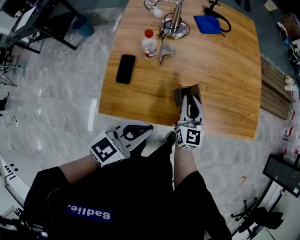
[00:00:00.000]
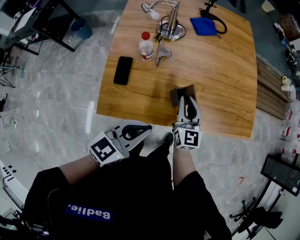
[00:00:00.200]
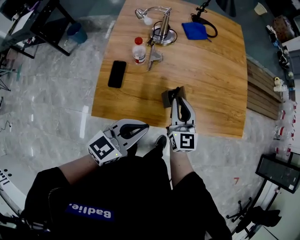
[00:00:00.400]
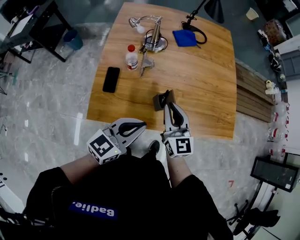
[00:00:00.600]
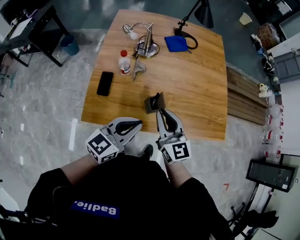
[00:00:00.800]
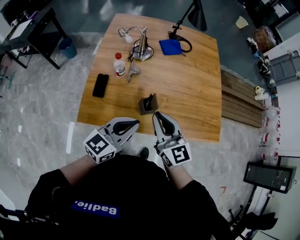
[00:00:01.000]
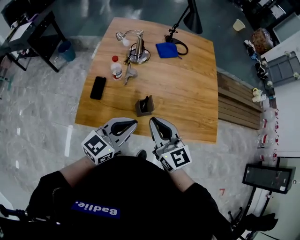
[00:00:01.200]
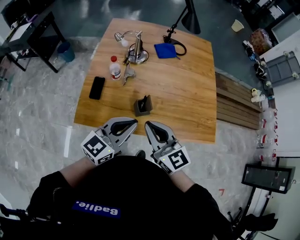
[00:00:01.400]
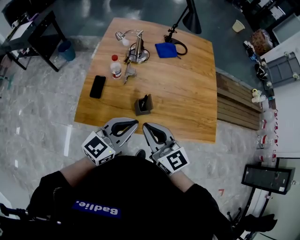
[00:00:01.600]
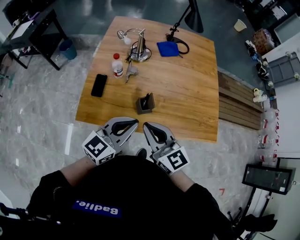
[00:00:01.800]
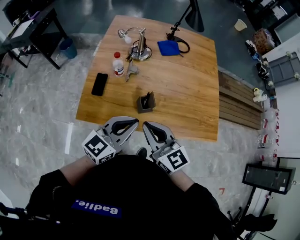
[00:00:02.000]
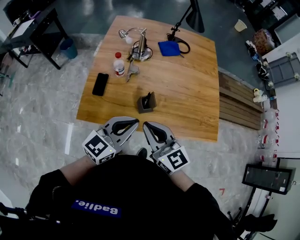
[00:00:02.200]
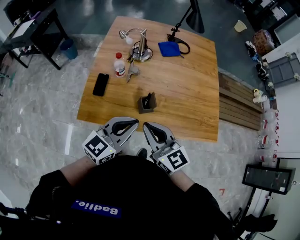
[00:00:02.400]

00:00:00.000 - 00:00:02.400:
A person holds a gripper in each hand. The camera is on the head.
00:00:00.000 - 00:00:01.200: The right gripper is displaced upward and backward by about 20 cm, and rotates approximately 30 degrees; the left gripper moves upward and to the right, about 10 cm.
00:00:01.200 - 00:00:02.400: The right gripper ends up about 5 cm from where it was.

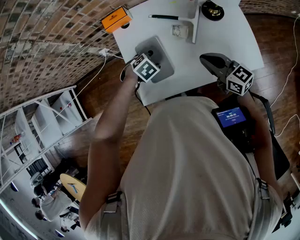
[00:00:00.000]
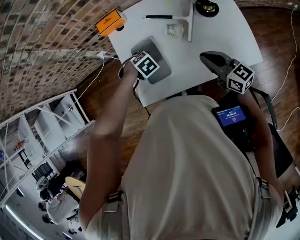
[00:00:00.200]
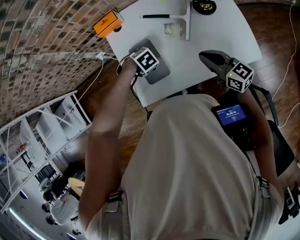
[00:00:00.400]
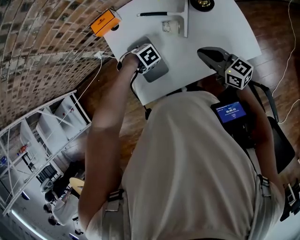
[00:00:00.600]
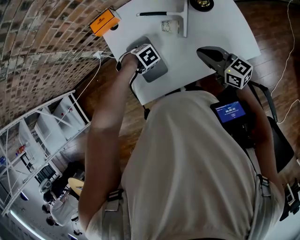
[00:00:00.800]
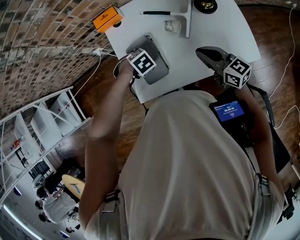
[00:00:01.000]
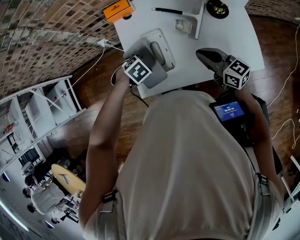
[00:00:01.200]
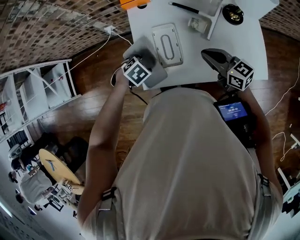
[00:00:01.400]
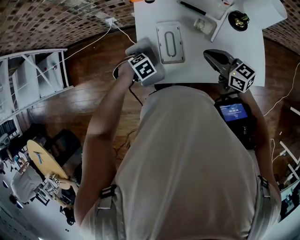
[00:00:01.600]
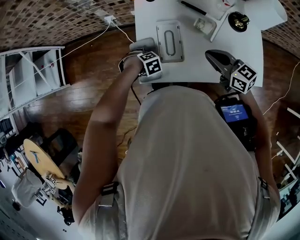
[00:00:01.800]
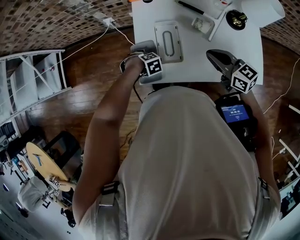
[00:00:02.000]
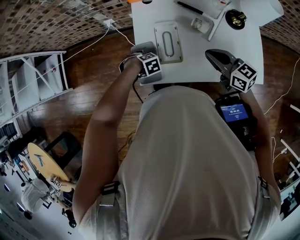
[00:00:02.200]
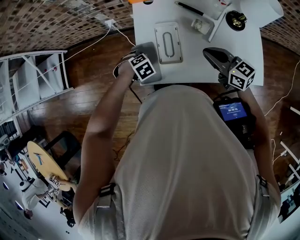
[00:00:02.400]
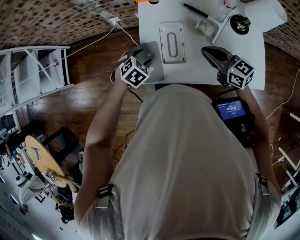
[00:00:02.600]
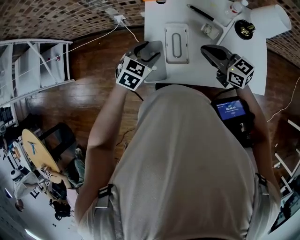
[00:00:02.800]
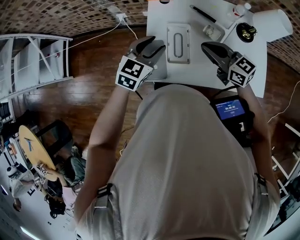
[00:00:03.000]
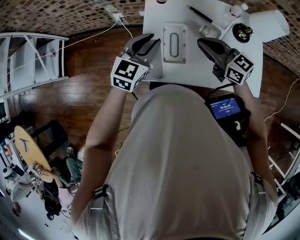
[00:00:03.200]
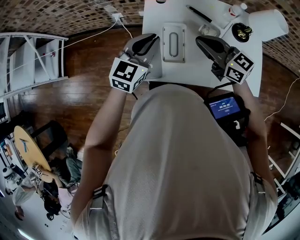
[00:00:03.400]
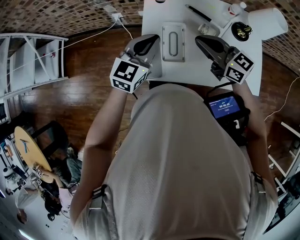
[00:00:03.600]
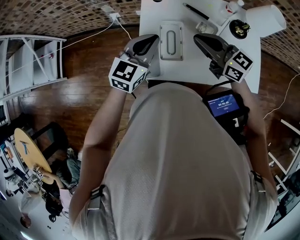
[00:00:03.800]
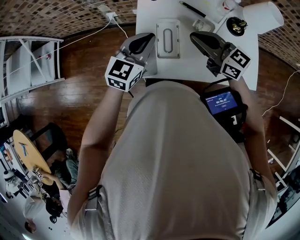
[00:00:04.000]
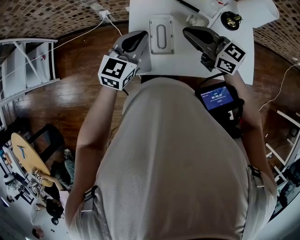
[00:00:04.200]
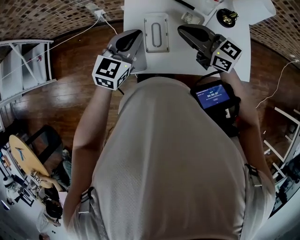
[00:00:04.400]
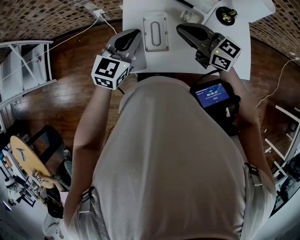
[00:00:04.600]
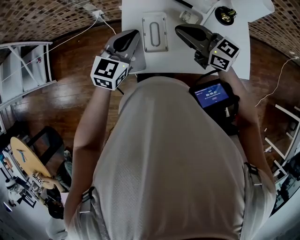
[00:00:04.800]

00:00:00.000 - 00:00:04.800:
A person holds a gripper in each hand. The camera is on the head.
00:00:00.000 - 00:00:01.600: The left gripper moves up and down over some 5 cm, changing direction 2 times. Meanwhile the right gripper ends up some 10 cm from where it was.
00:00:01.600 - 00:00:03.200: The left gripper heads upward, covering some 25 cm, points its fingers roughly 70 degrees further upward, and closes its fingers; the right gripper moves about 10 cm.
00:00:03.200 - 00:00:04.800: The grippers make only small movements.

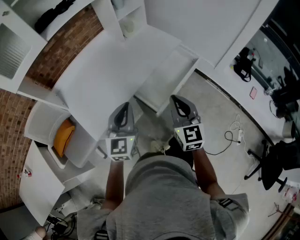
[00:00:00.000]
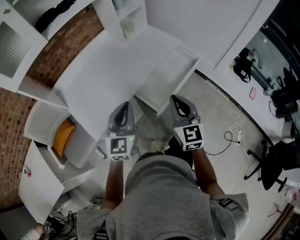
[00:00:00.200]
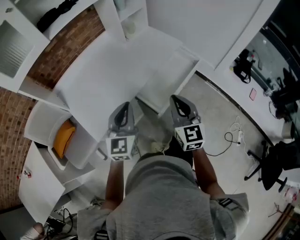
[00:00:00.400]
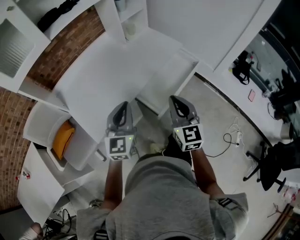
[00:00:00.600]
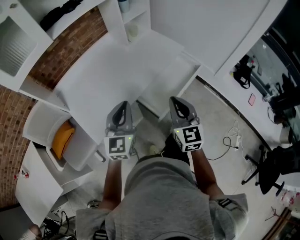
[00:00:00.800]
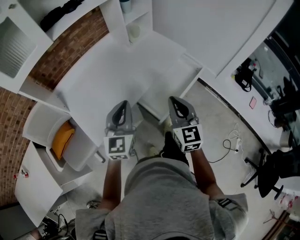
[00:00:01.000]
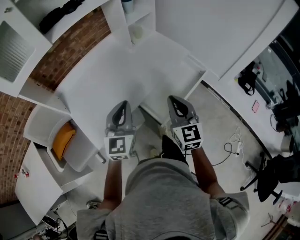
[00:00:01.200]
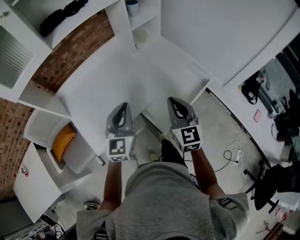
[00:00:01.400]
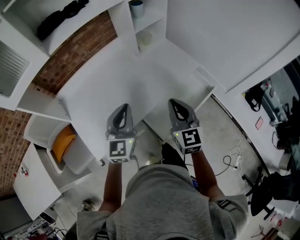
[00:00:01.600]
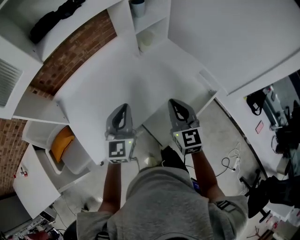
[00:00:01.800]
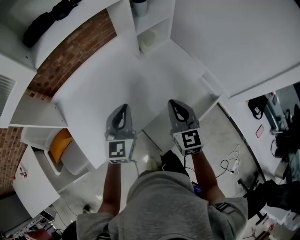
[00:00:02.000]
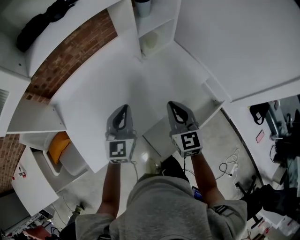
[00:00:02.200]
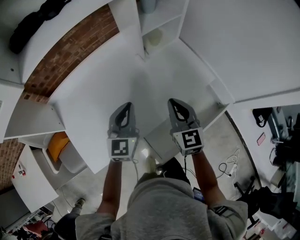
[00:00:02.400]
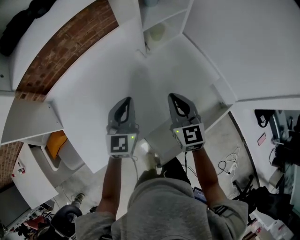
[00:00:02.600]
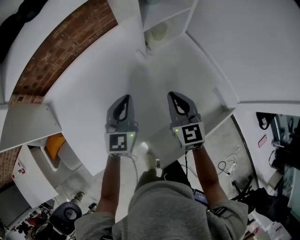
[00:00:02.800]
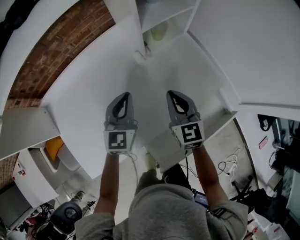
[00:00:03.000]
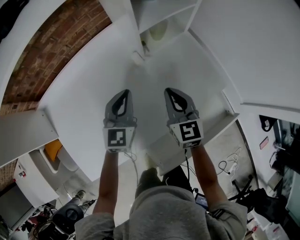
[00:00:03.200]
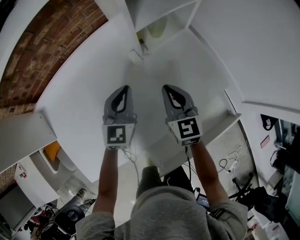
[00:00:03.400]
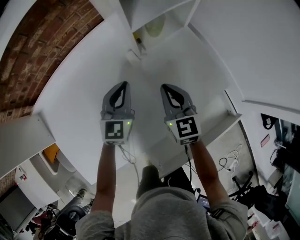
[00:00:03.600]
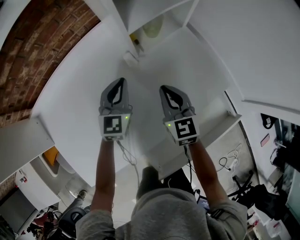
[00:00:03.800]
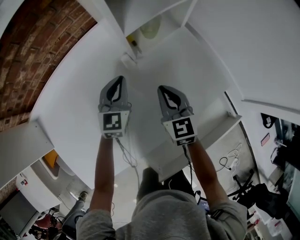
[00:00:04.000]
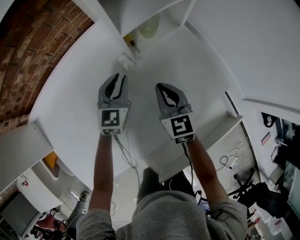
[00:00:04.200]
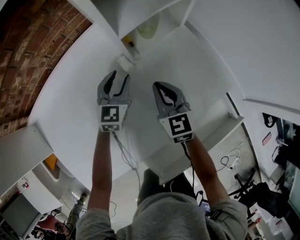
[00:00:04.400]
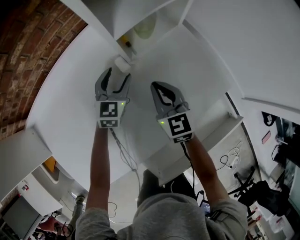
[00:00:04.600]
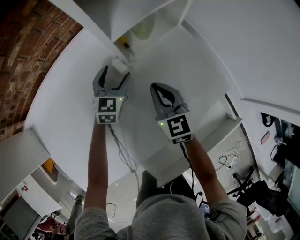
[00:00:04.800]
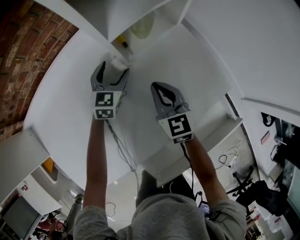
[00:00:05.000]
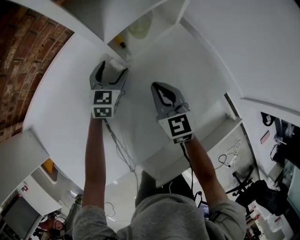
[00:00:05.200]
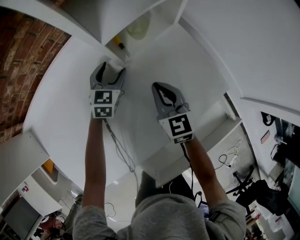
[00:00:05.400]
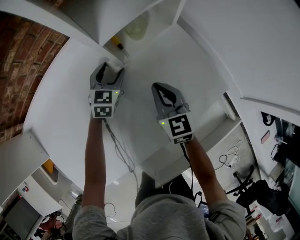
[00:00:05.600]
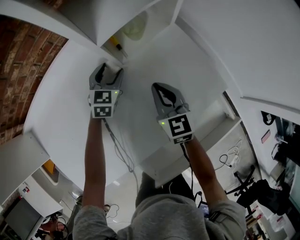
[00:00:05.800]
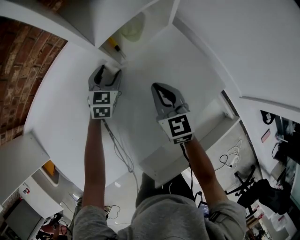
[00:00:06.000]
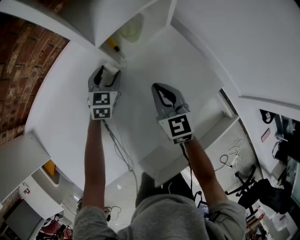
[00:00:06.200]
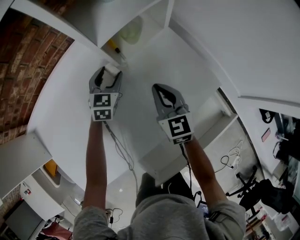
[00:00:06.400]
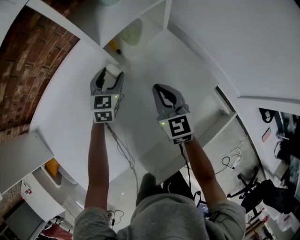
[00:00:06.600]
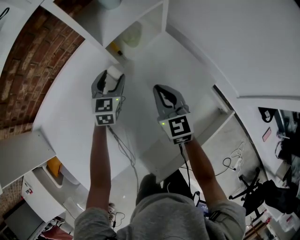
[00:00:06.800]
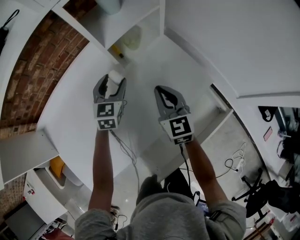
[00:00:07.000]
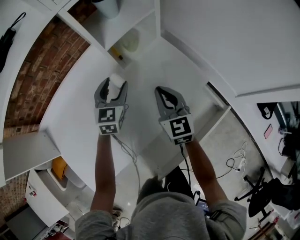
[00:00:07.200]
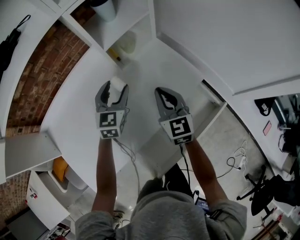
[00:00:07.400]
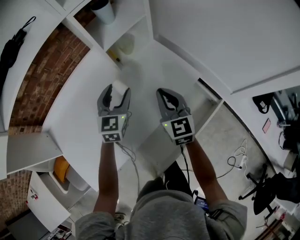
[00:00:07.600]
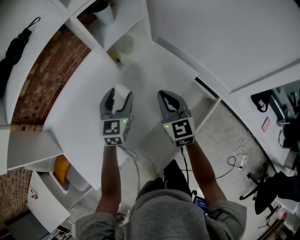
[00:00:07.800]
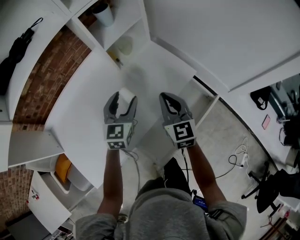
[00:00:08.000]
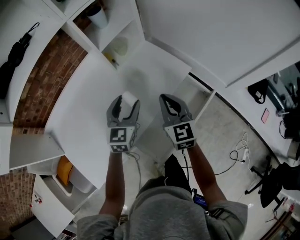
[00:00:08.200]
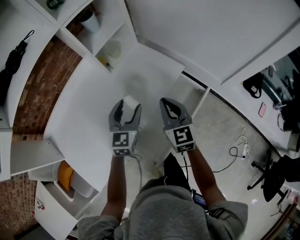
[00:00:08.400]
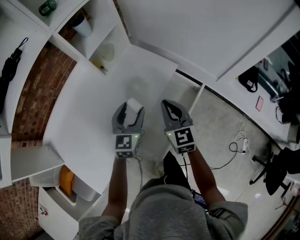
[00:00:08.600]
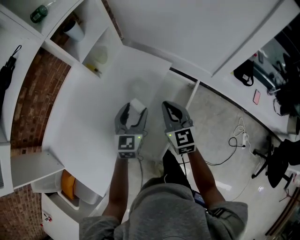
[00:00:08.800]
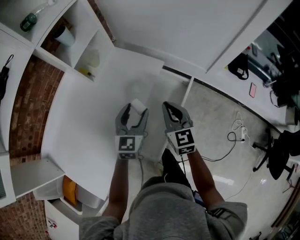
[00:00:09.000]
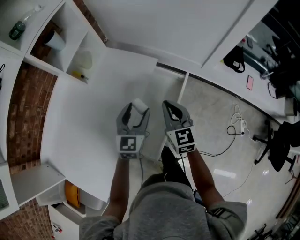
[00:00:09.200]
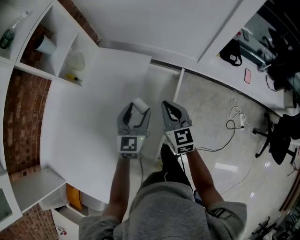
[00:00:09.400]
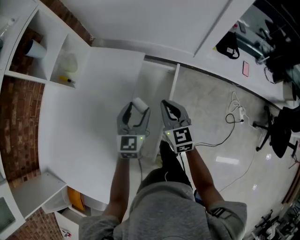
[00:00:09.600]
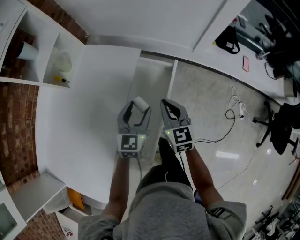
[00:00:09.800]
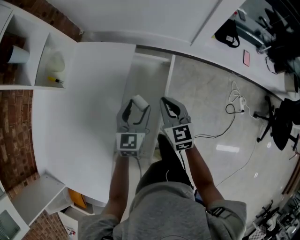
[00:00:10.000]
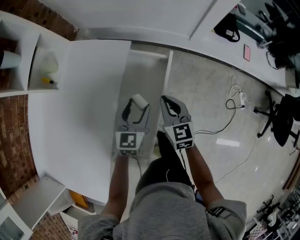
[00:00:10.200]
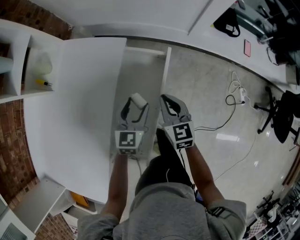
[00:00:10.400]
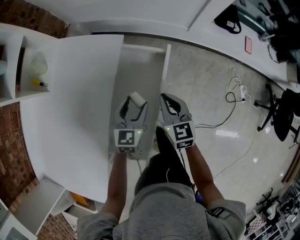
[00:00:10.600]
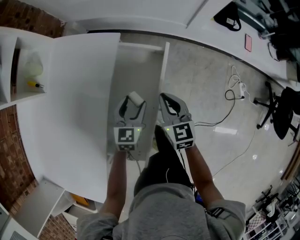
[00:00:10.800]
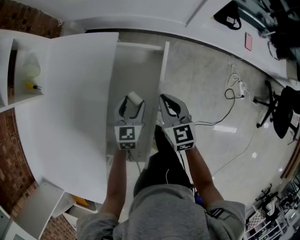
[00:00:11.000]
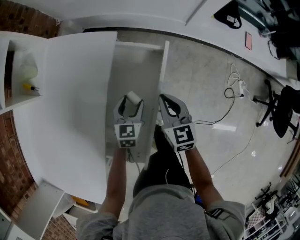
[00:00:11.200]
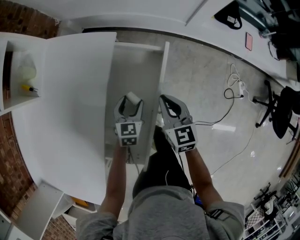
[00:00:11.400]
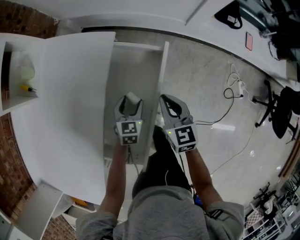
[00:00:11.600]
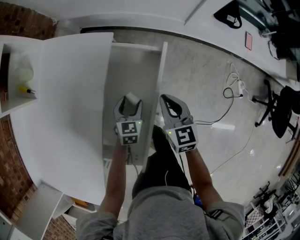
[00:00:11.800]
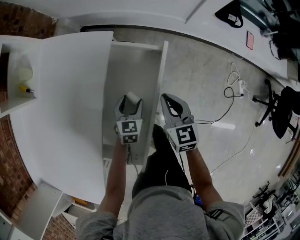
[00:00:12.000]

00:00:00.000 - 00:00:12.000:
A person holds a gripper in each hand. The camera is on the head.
00:00:00.000 - 00:00:01.600: The grippers both shift forward by some 15 cm.
00:00:01.600 - 00:00:03.000: The grippers both shift forward and downward by some 30 cm.
00:00:03.000 - 00:00:04.400: The left gripper goes about 20 cm forward and downward, and opens up; the right gripper moves downward and forward, roughly 15 cm.
00:00:04.400 - 00:00:06.000: The left gripper heads downward and forward, covering approximately 5 cm.
00:00:06.000 - 00:00:07.600: The two grippers go about 20 cm upward and backward.
00:00:07.600 - 00:00:09.000: The left gripper goes approximately 20 cm to the right and backward, and swivels about 20 degrees, while the right gripper heads backward and to the right, covering roughly 20 cm, and swivels about 20 degrees.
00:00:09.000 - 00:00:10.400: The grippers both shift downward and to the right by approximately 20 cm.
00:00:10.400 - 00:00:12.000: The left gripper goes about 15 cm downward. The right gripper travels downward by about 5 cm.

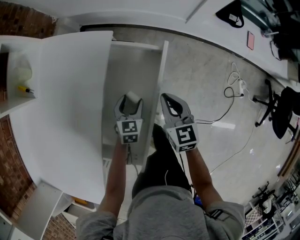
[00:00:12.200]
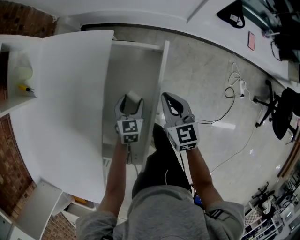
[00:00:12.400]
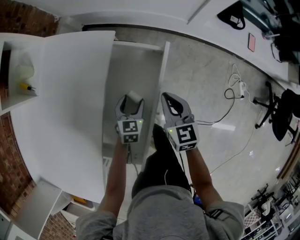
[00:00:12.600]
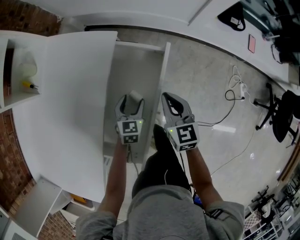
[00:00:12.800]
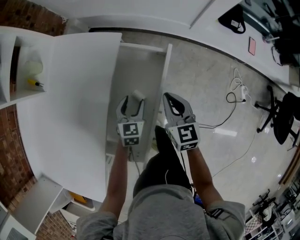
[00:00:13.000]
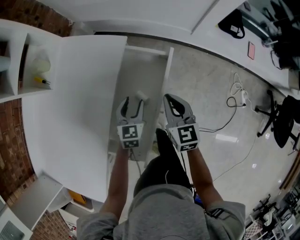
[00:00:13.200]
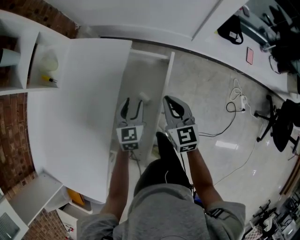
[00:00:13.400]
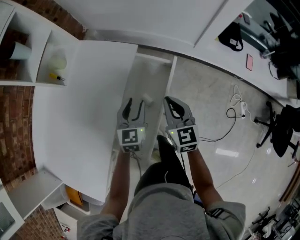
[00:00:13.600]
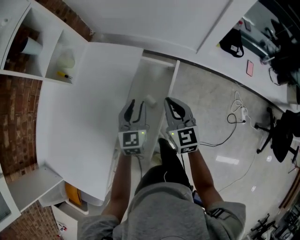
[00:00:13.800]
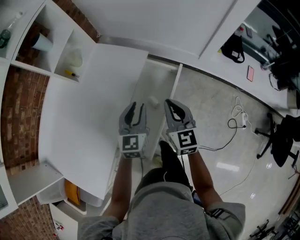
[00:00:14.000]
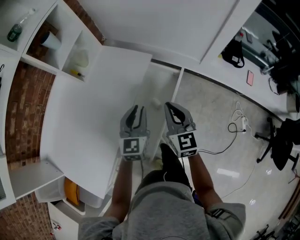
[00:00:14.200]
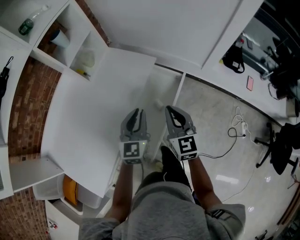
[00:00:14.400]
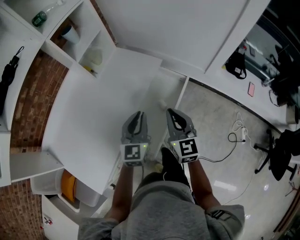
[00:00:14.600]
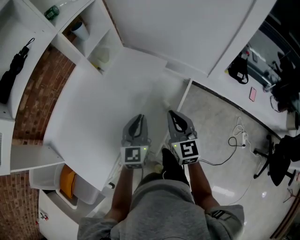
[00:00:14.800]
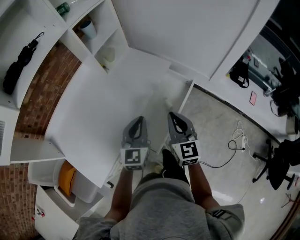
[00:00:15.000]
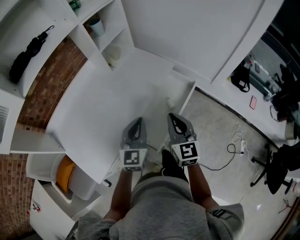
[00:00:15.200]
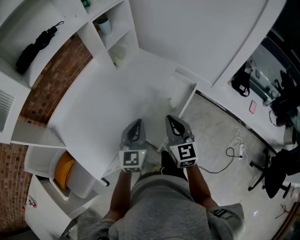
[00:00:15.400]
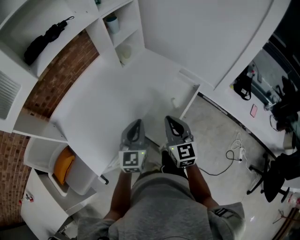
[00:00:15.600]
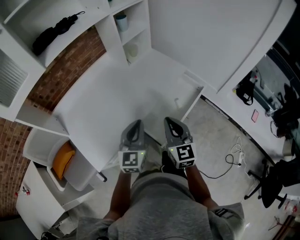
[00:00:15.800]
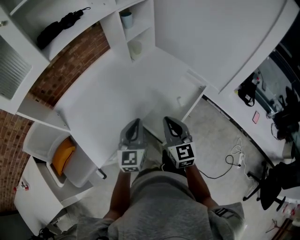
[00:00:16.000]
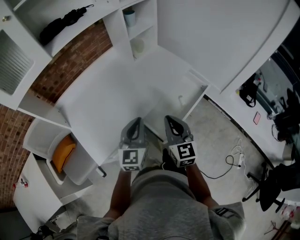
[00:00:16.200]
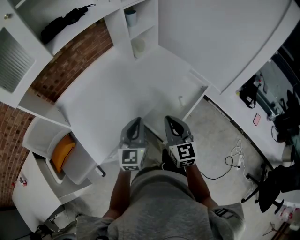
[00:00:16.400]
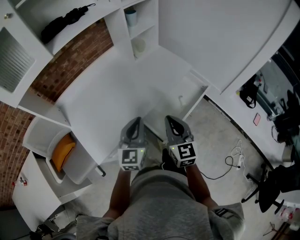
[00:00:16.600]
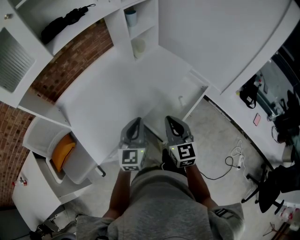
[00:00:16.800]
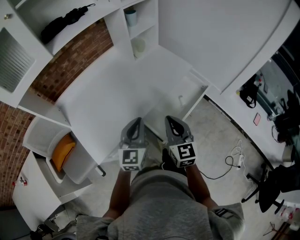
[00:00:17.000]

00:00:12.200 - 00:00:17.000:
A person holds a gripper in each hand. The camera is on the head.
00:00:12.200 - 00:00:13.800: The right gripper heads upward, covering about 15 cm, while the left gripper goes approximately 25 cm upward, turns by approximately 20 degrees, and closes.
00:00:13.800 - 00:00:15.400: The left gripper goes about 30 cm backward, upward and to the left, turns by some 20 degrees, and closes its fingers. Meanwhile the right gripper is displaced backward, to the left and upward by some 25 cm.
00:00:15.400 - 00:00:17.000: The left gripper goes about 10 cm to the left and backward; the right gripper is displaced to the left by roughly 5 cm.
